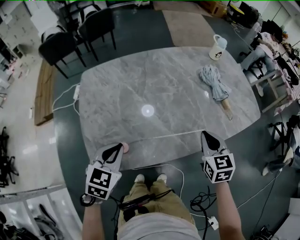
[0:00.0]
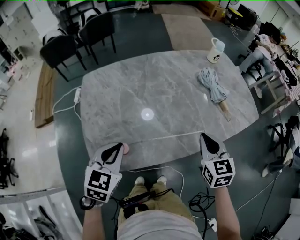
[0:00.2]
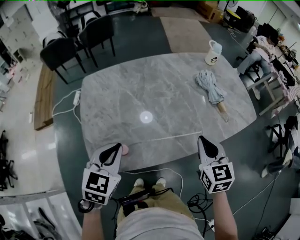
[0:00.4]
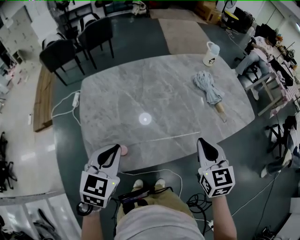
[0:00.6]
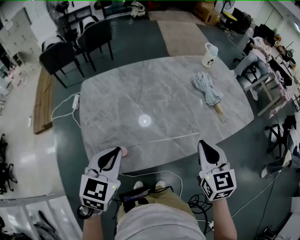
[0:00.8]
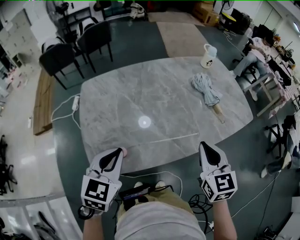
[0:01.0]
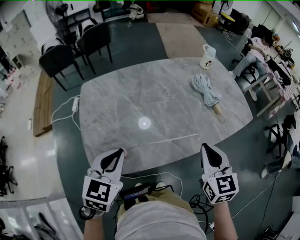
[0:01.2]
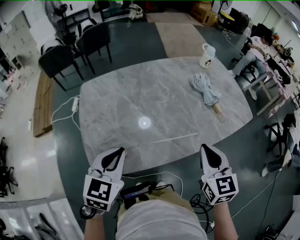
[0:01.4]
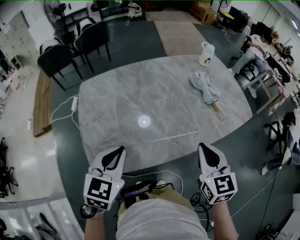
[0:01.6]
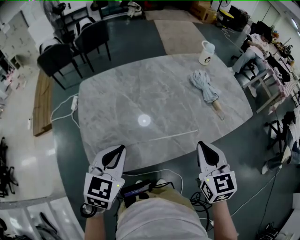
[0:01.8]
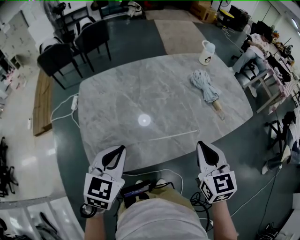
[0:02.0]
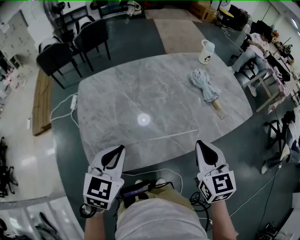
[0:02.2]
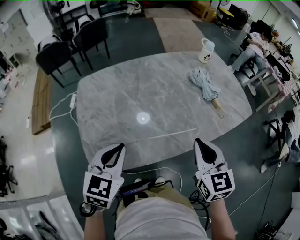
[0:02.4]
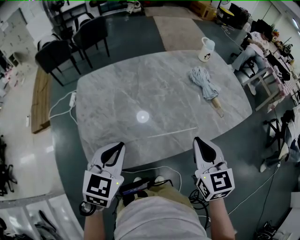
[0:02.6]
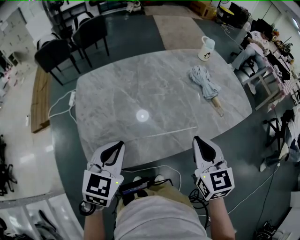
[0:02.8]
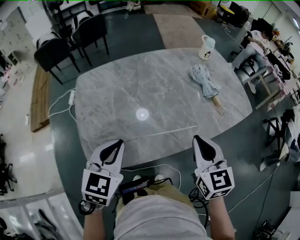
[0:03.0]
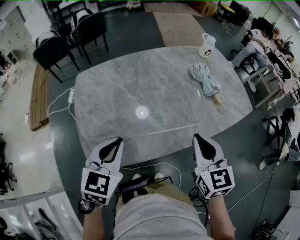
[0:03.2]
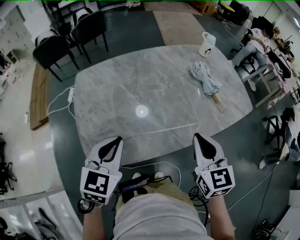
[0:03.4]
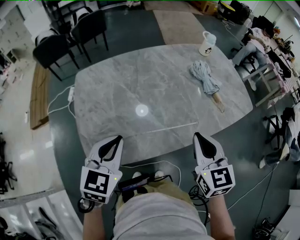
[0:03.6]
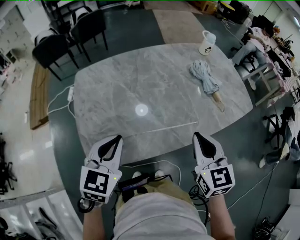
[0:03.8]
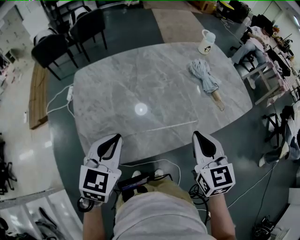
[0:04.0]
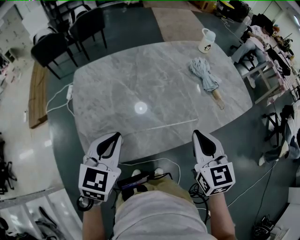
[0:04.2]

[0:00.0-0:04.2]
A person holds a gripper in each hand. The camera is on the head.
0:00.0 to 0:01.4: The left gripper travels upward by roughly 10 cm. The right gripper travels upward and backward by about 10 cm.
0:01.4 to 0:02.8: The grippers stay close to where they were, moving slightly.
0:02.8 to 0:04.2: Neither gripper changes place.

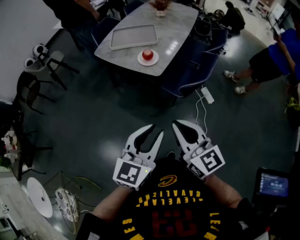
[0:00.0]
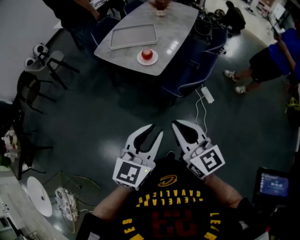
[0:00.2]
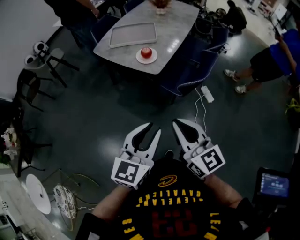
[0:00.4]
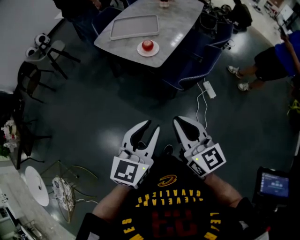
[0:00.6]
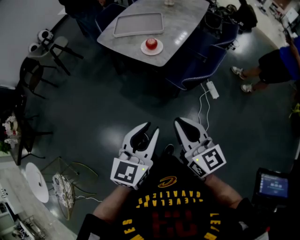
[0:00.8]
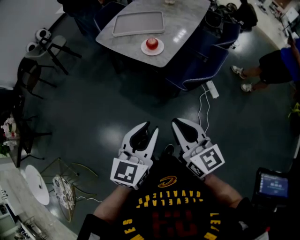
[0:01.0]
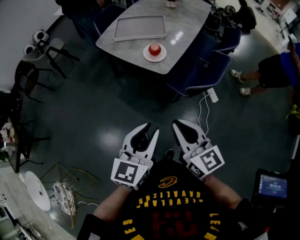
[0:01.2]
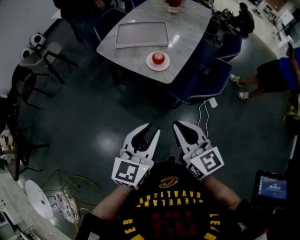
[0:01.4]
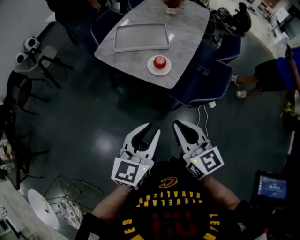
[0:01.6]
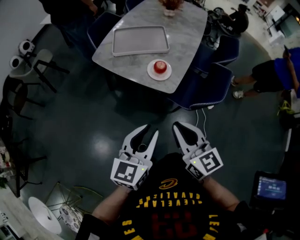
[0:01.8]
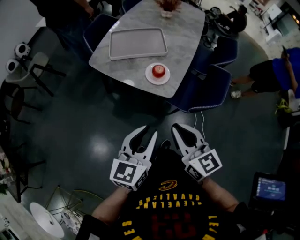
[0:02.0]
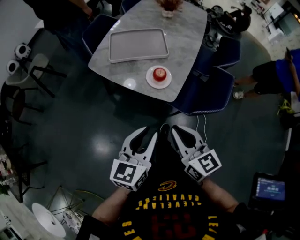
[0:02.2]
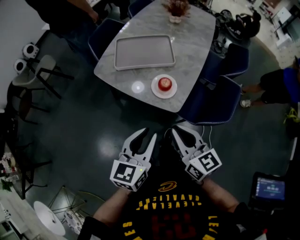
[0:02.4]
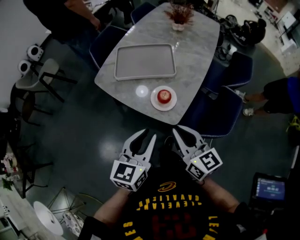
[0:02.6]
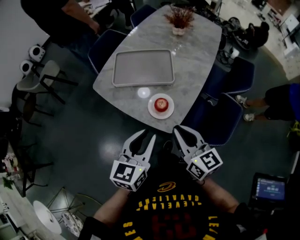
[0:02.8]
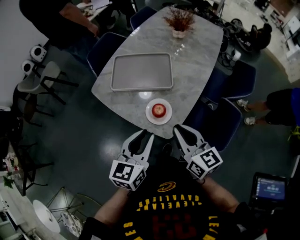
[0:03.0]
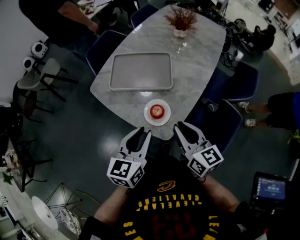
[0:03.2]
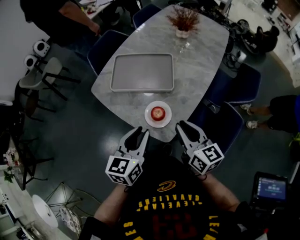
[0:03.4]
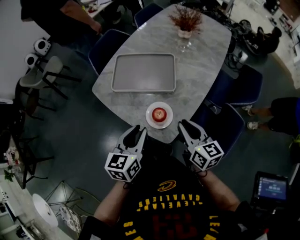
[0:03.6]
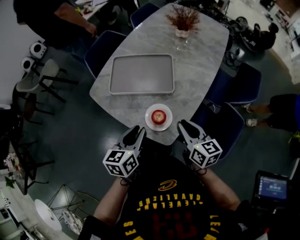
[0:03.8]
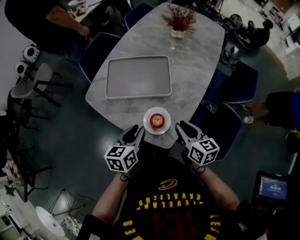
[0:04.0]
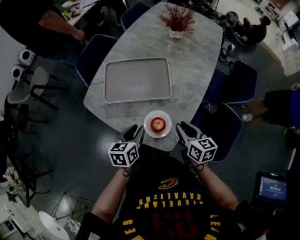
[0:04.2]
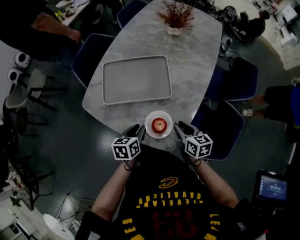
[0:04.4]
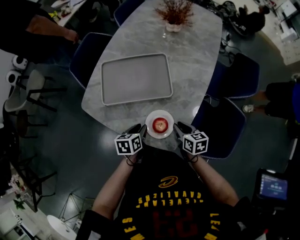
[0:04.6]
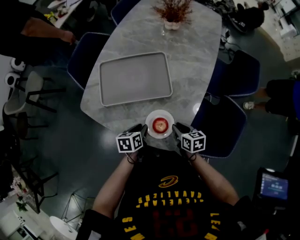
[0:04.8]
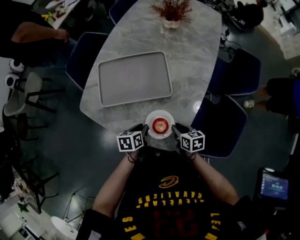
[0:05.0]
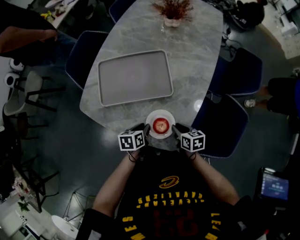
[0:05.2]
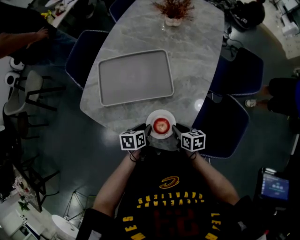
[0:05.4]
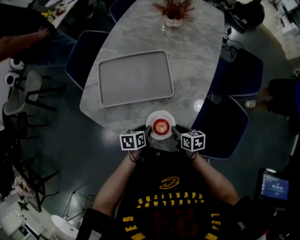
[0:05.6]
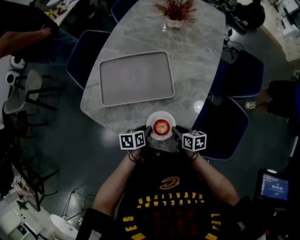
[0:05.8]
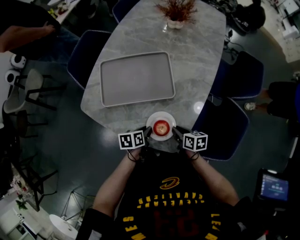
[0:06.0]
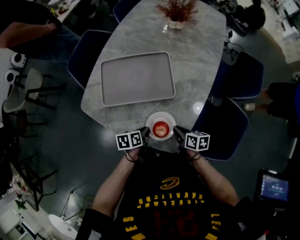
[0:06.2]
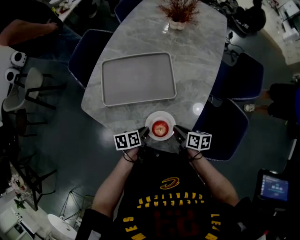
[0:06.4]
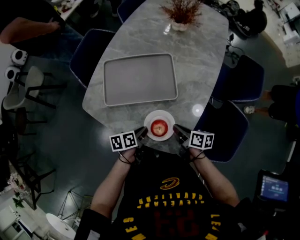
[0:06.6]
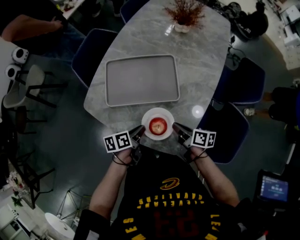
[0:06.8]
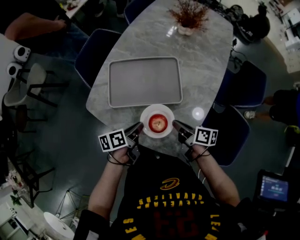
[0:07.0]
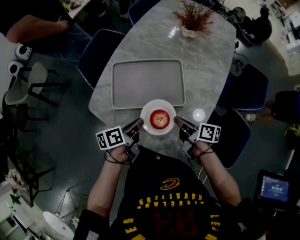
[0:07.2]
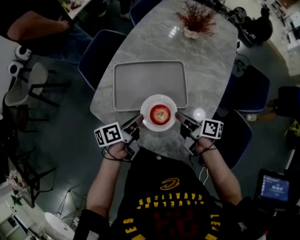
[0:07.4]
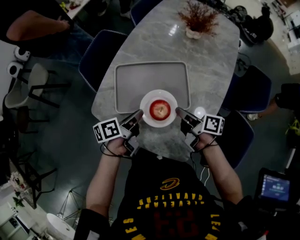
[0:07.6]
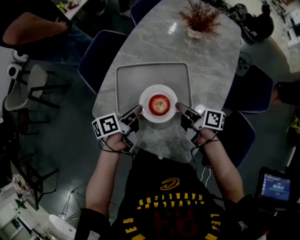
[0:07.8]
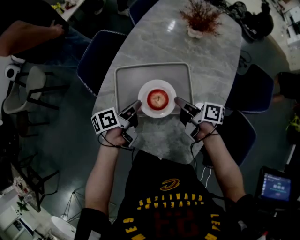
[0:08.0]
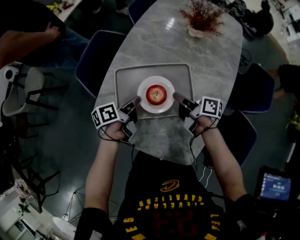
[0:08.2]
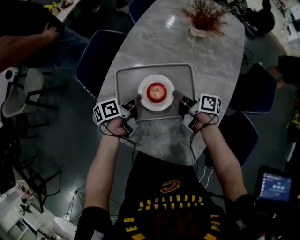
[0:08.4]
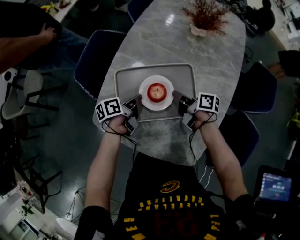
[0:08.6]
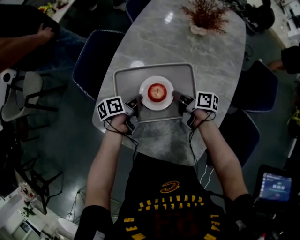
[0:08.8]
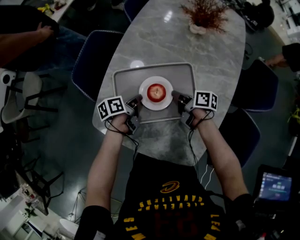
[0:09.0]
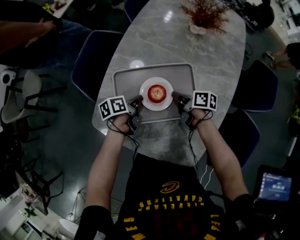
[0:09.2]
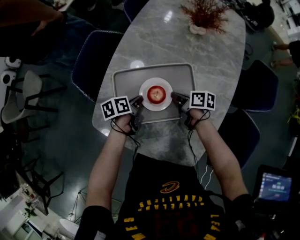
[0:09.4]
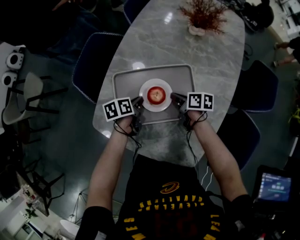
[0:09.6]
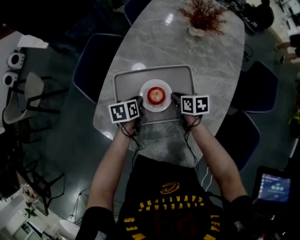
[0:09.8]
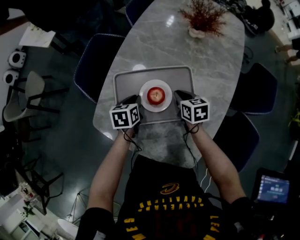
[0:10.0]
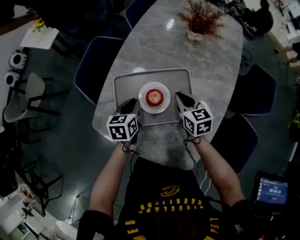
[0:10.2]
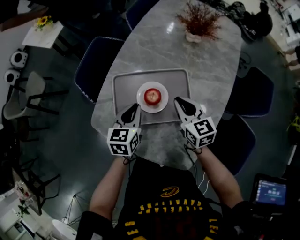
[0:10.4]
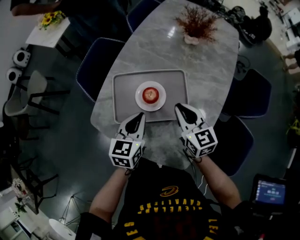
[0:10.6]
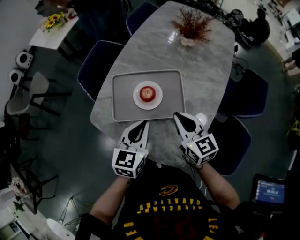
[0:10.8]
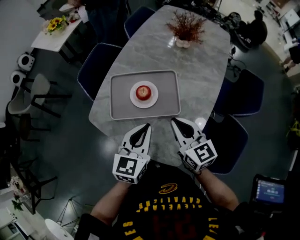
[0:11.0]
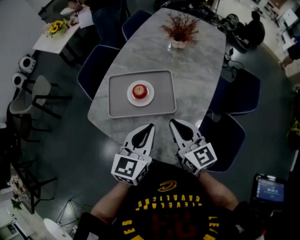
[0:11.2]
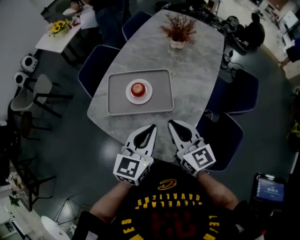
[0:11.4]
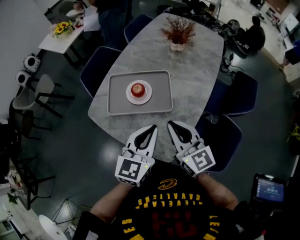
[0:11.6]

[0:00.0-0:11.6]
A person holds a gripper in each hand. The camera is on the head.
0:00.0 to 0:01.4: The left gripper moves forward and to the left, approximately 15 cm. Meanwhile the right gripper is displaced forward by approximately 10 cm.
0:01.4 to 0:02.8: The two grippers go about 30 cm forward.
0:02.8 to 0:04.4: Both grippers move downward and forward, about 25 cm. The left gripper swivels roughly 30 degrees. The right gripper turns by some 30 degrees.
0:04.4 to 0:05.8: Both grippers travel together downward, some 10 cm.
0:05.8 to 0:07.2: The right gripper travels upward, forward and to the left by about 15 cm, and rotates some 30 degrees, while the left gripper is displaced upward, to the left and forward by some 15 cm, and turns by about 30 degrees.
0:07.2 to 0:08.8: Both grippers move forward and downward, some 20 cm.
0:08.8 to 0:10.2: The two grippers go about 5 cm upward. The right gripper rolls counterclockwise, seen from behind, by some 50 degrees, while the left gripper twists some 40 degrees clockwise, seen from behind.
0:10.2 to 0:11.6: The left gripper is displaced backward, upward and to the right by about 35 cm, and changes its angle by about 30 degrees. The right gripper is displaced backward and upward by approximately 30 cm, and swivels about 30 degrees.

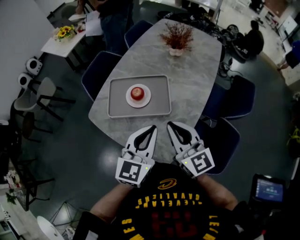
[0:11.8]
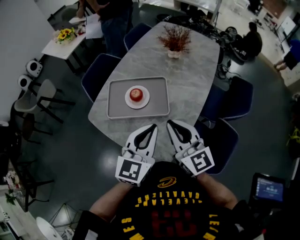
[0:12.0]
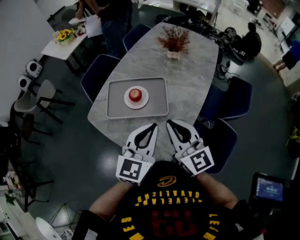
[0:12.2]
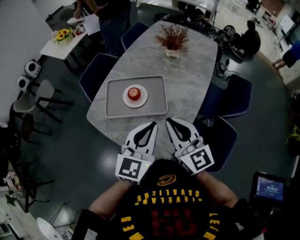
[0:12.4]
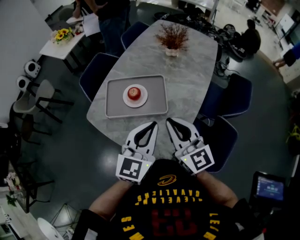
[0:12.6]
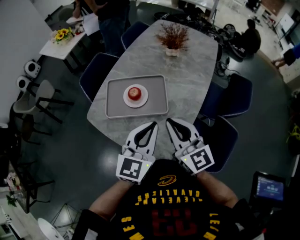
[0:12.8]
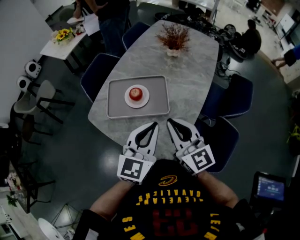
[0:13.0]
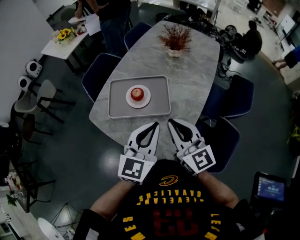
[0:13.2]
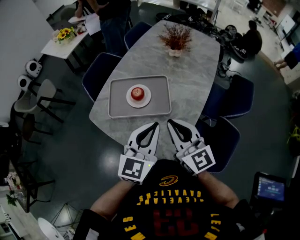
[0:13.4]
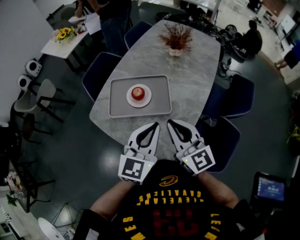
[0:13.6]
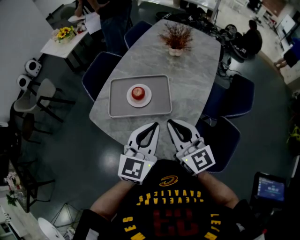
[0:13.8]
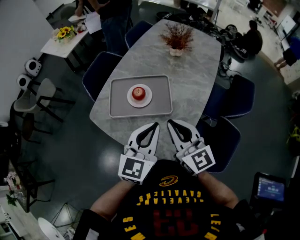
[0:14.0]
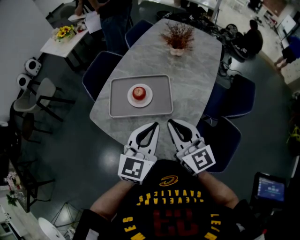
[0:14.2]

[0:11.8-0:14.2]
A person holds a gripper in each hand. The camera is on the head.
0:11.8 to 0:13.0: The grippers move only a little.
0:13.0 to 0:14.2: The two grippers keep their place.

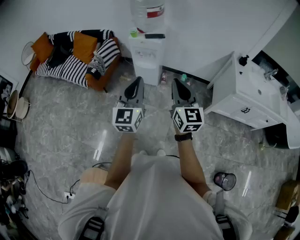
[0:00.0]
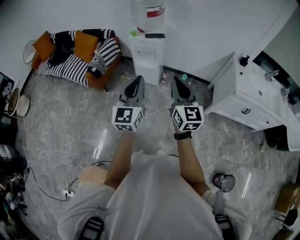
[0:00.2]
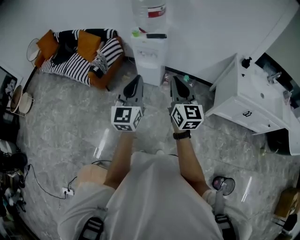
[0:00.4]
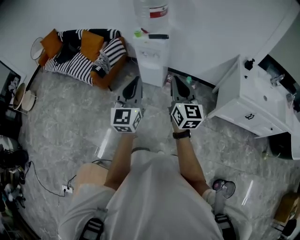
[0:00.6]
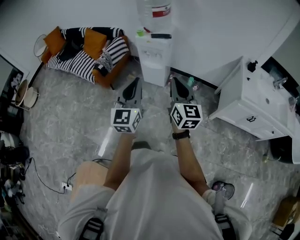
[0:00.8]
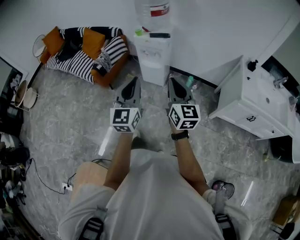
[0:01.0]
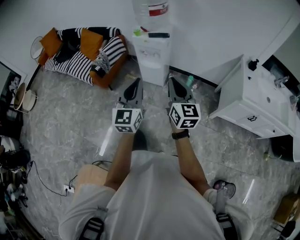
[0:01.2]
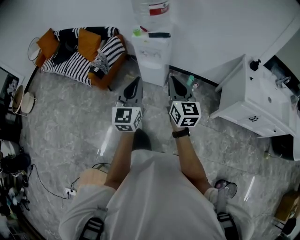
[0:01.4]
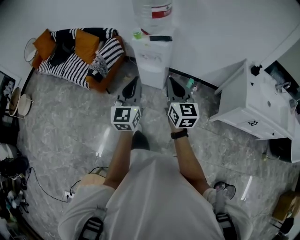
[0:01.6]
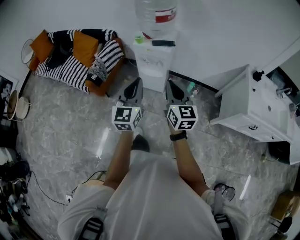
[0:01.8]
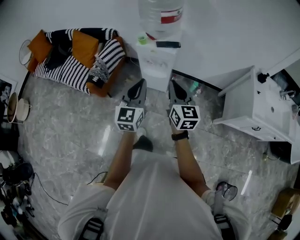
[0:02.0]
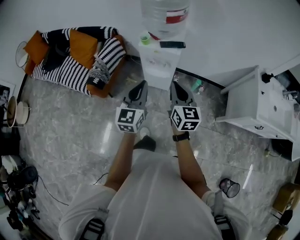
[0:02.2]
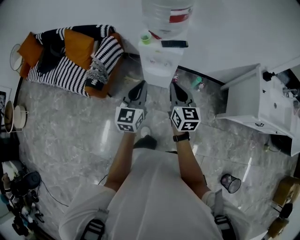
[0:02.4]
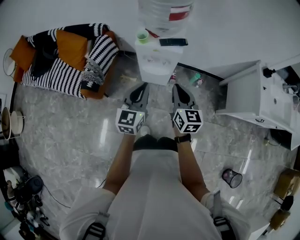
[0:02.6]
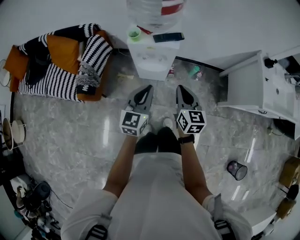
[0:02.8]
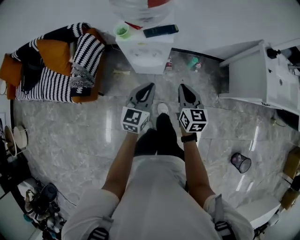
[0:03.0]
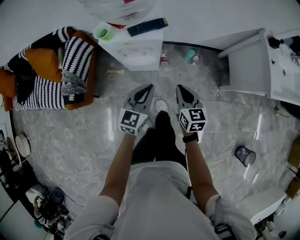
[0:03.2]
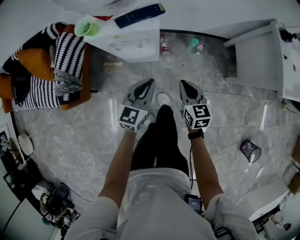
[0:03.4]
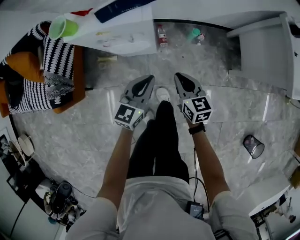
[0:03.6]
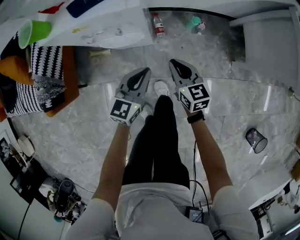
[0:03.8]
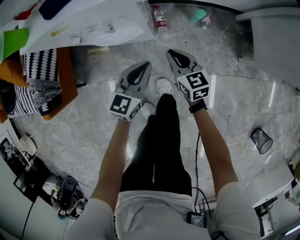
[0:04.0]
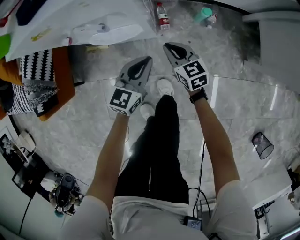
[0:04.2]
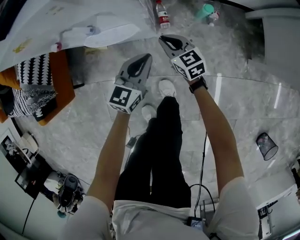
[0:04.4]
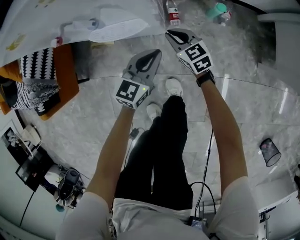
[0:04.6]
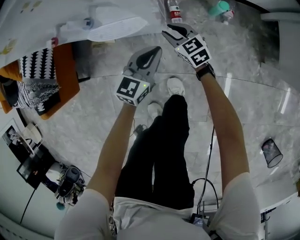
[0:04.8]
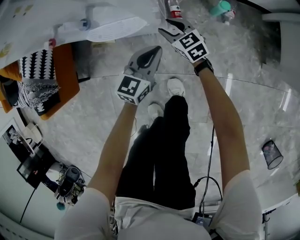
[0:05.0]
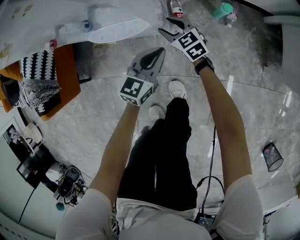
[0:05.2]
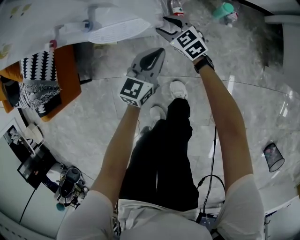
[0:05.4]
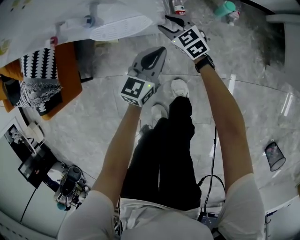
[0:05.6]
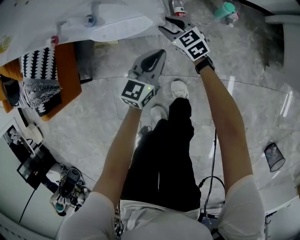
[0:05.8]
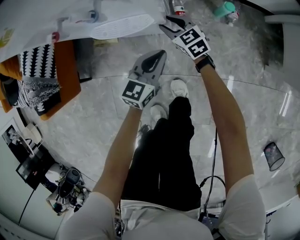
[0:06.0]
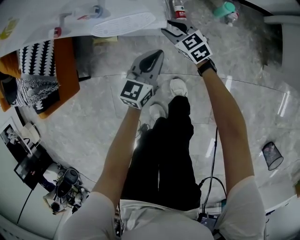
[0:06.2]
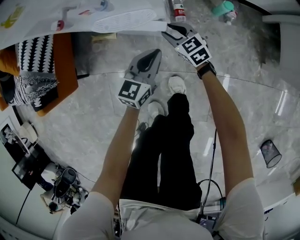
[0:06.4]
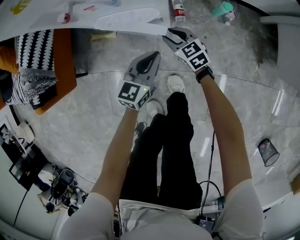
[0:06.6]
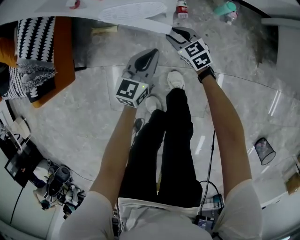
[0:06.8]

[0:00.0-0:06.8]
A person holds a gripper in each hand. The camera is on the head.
0:00.0 to 0:01.4: The right gripper is displaced forward and downward by approximately 10 cm, while the left gripper moves forward, about 5 cm.
0:01.4 to 0:02.8: The left gripper goes roughly 30 cm forward and downward, and changes its angle by approximately 30 degrees; the right gripper goes about 30 cm forward, downward and to the left, and turns by about 20 degrees.
0:02.8 to 0:04.0: The grippers both shift downward by about 40 cm. The left gripper swivels about 20 degrees.
0:04.0 to 0:05.4: The left gripper shifts approximately 15 cm downward. The right gripper heads downward, forward and to the left, covering about 25 cm, turns by about 30 degrees, and opens.
0:05.4 to 0:06.8: The left gripper shifts approximately 10 cm to the left and backward. Meanwhile the right gripper travels backward by roughly 10 cm.
